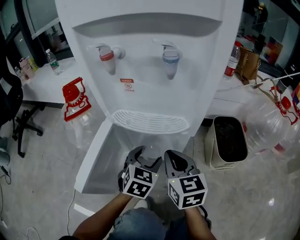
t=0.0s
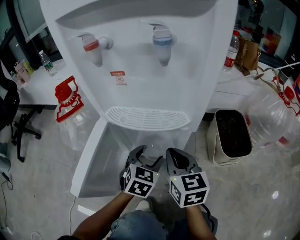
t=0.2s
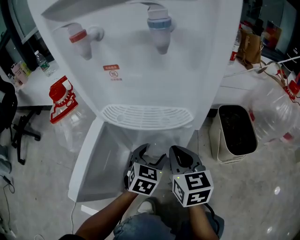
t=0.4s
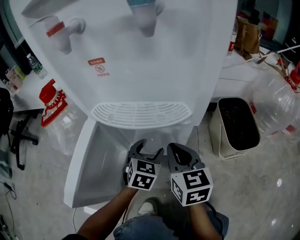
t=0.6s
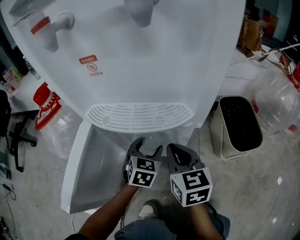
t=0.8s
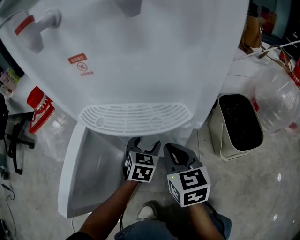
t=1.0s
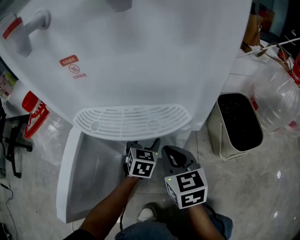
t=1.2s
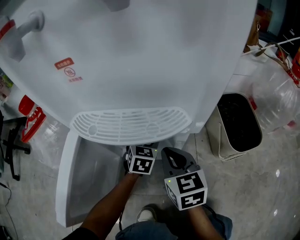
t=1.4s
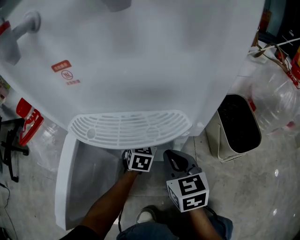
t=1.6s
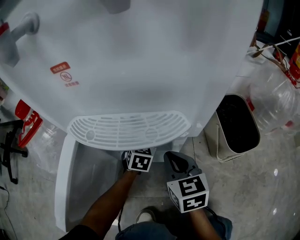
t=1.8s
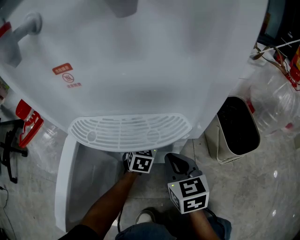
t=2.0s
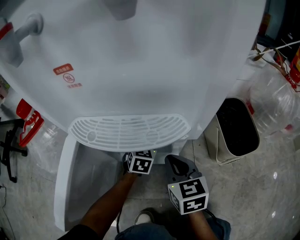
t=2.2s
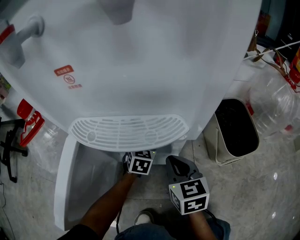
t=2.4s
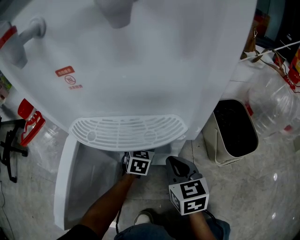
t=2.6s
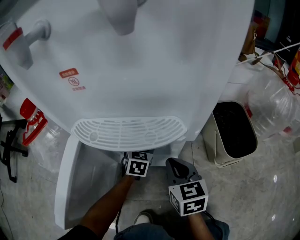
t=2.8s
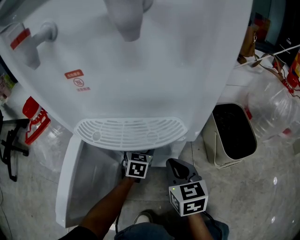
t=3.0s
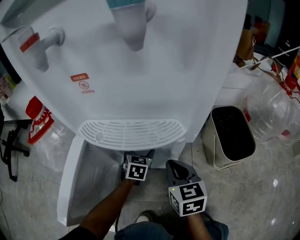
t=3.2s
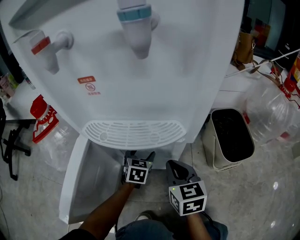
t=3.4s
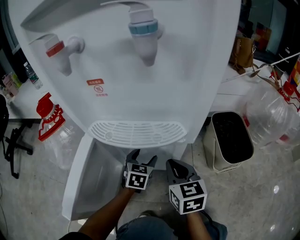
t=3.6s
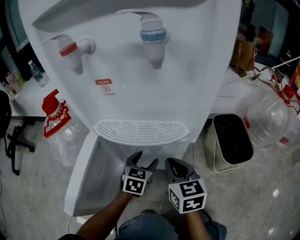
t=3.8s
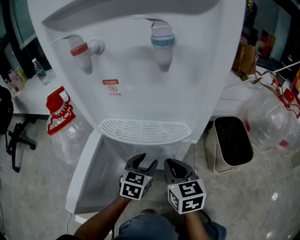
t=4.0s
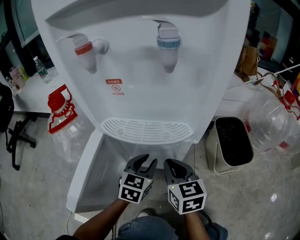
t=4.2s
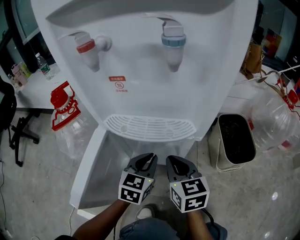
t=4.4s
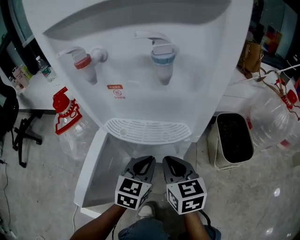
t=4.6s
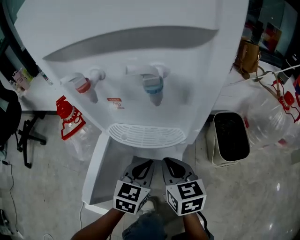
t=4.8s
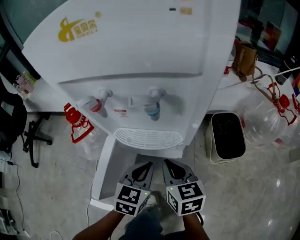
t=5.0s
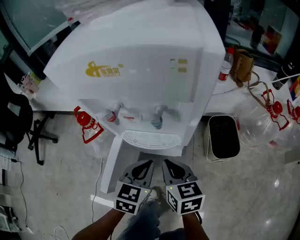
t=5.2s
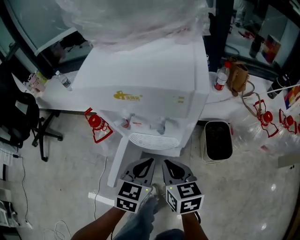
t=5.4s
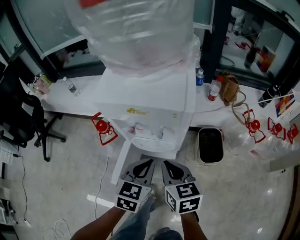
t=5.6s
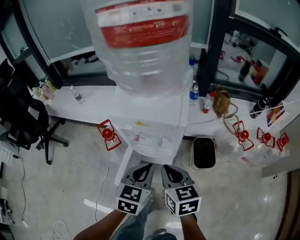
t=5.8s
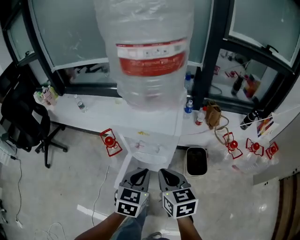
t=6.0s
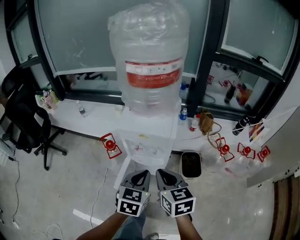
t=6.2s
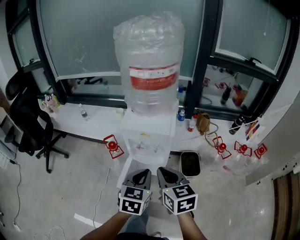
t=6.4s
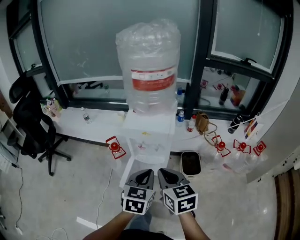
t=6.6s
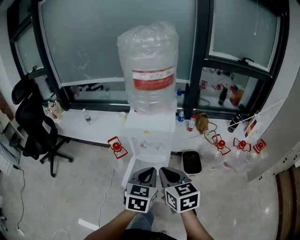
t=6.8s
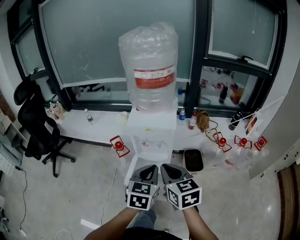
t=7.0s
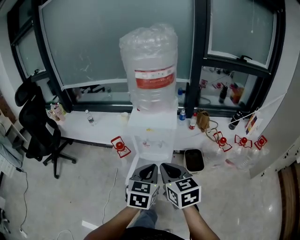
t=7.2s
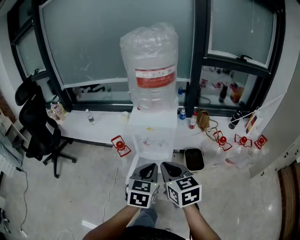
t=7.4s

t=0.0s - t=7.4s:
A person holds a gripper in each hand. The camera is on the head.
t=0.0s - t=1.4s: The left gripper moves downward and forward, roughly 20 cm, while the right gripper is displaced downward and forward by some 10 cm.
t=1.4s - t=3.0s: The grippers make only small movements.
t=3.0s - t=4.4s: The left gripper is displaced upward and backward by roughly 20 cm, and closes its fingers. The right gripper heads upward, covering about 5 cm.
t=4.4s - t=6.0s: The grippers both shift upward by roughly 50 cm.
t=6.0s - t=7.4s: The grippers both shift upward and backward by approximately 20 cm.

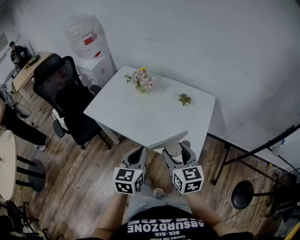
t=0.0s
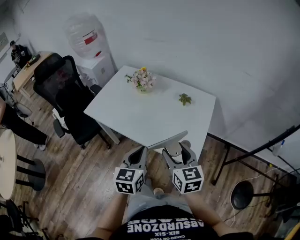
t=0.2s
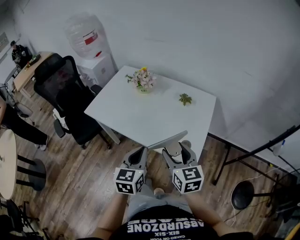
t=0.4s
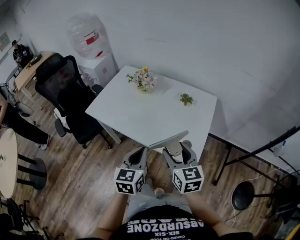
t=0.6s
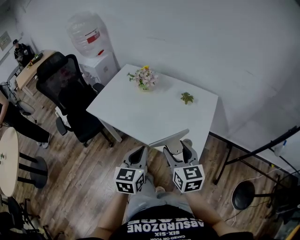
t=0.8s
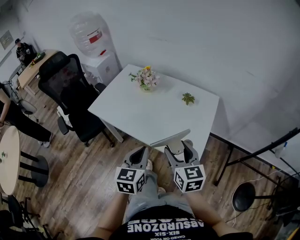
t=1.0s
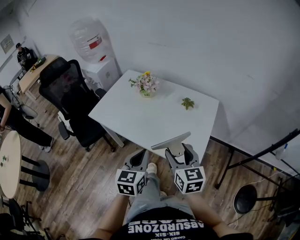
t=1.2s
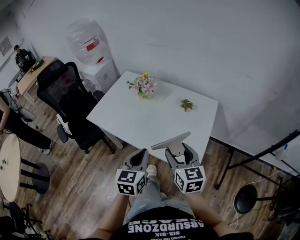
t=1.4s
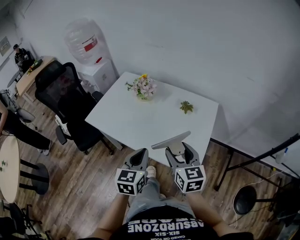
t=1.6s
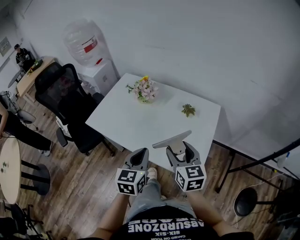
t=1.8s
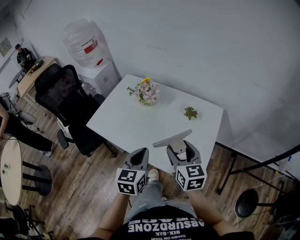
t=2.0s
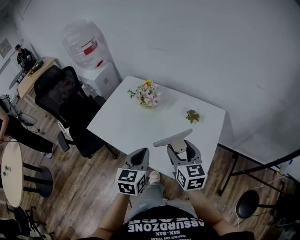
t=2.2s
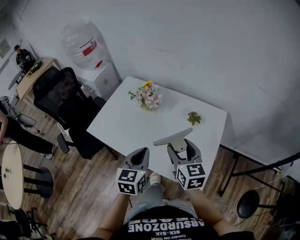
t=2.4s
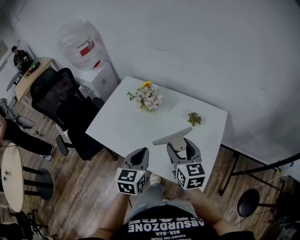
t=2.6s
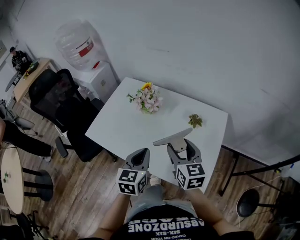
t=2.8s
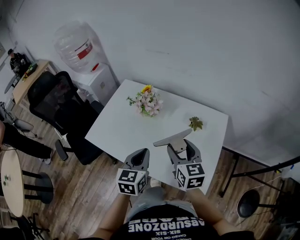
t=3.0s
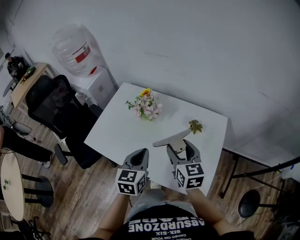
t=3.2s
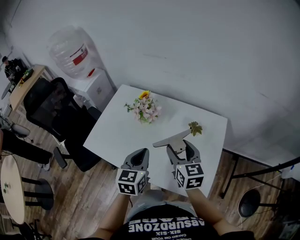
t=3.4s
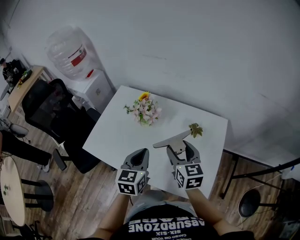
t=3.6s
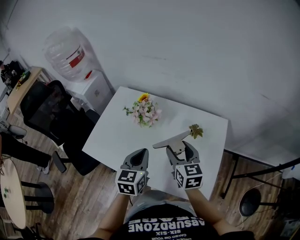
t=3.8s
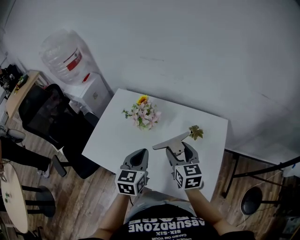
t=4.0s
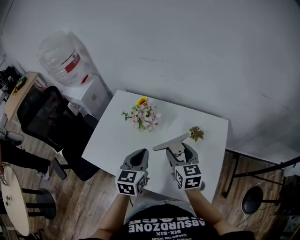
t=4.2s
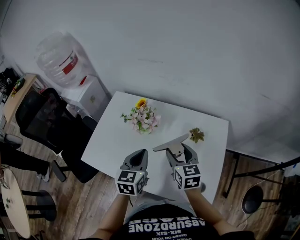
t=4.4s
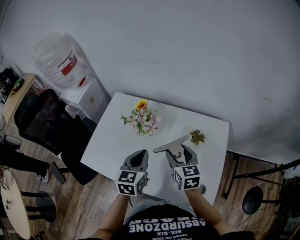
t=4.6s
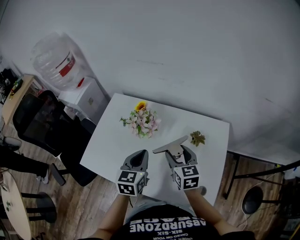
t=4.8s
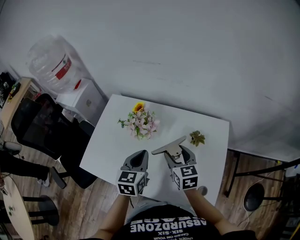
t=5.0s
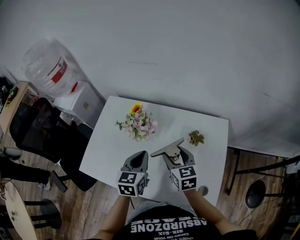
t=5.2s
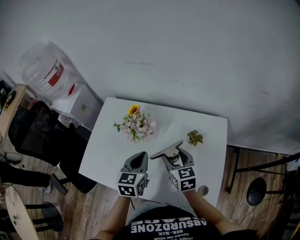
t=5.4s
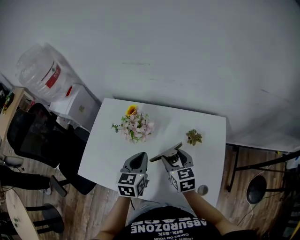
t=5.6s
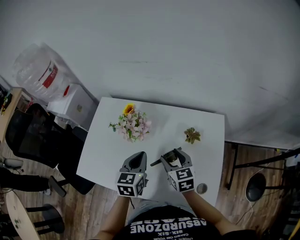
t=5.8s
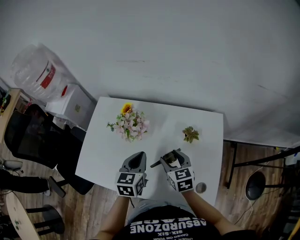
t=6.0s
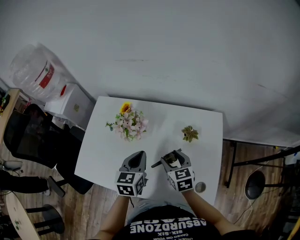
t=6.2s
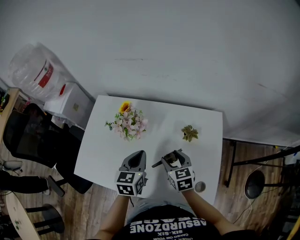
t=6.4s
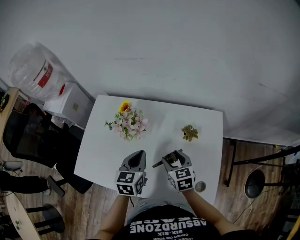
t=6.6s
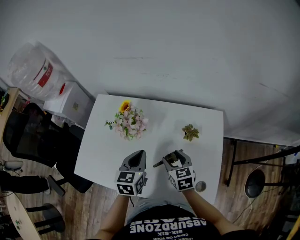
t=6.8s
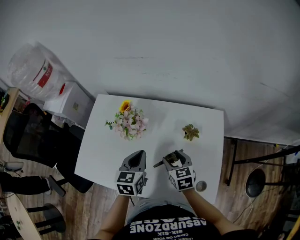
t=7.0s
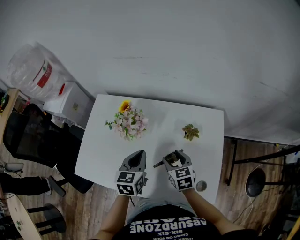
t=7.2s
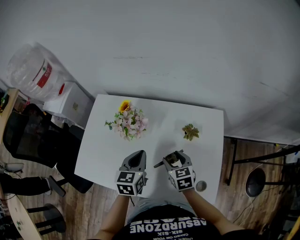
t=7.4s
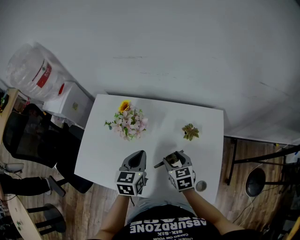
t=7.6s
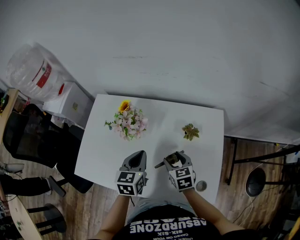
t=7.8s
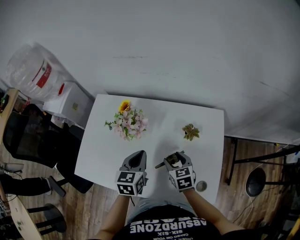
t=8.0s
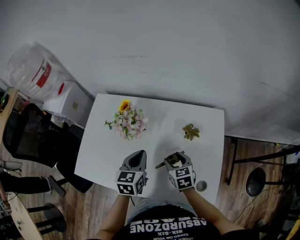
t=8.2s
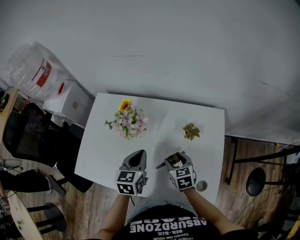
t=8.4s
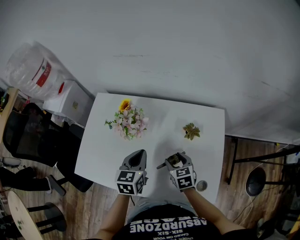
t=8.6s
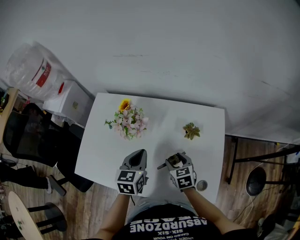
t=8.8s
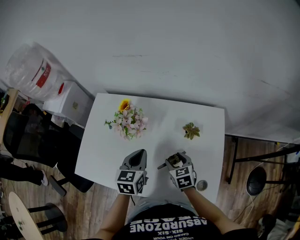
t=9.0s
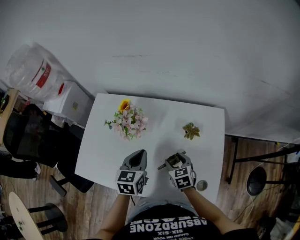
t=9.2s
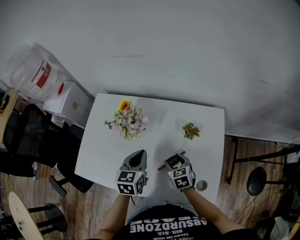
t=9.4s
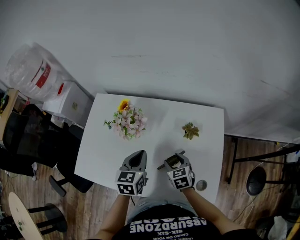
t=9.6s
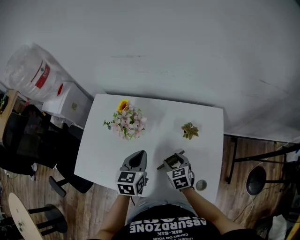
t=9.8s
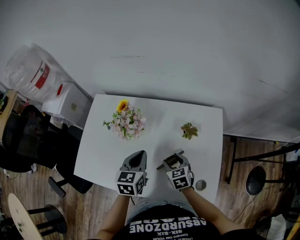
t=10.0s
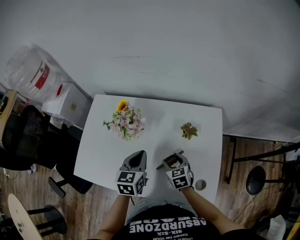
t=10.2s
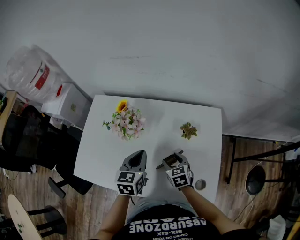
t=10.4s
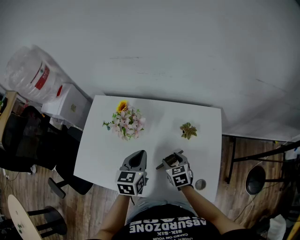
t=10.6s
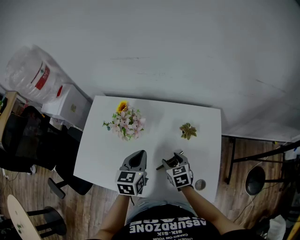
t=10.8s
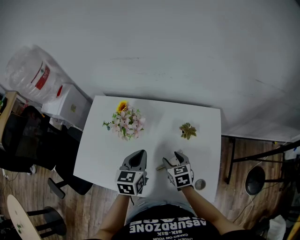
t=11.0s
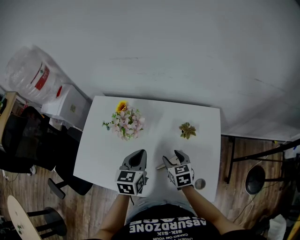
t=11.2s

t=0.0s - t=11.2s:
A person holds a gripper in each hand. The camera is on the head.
t=0.0s - t=1.6s: Both grippers move forward, roughly 5 cm.
t=1.6s - t=3.2s: Both grippers travel together forward, roughly 20 cm.
t=3.2s - t=4.8s: The right gripper shifts approximately 10 cm forward and downward. The left gripper heads forward, covering some 10 cm.
t=4.8s - t=6.4s: The left gripper ends up about 5 cm from where it was, while the right gripper heads downward, covering approximately 5 cm.
t=6.4s - t=8.0s: The grippers make only small movements.
t=8.0s - t=11.2s: There are only small adjustments of the grippers.

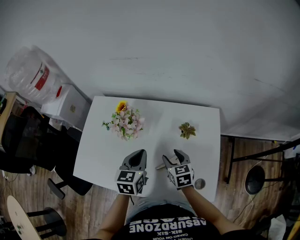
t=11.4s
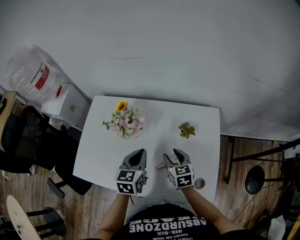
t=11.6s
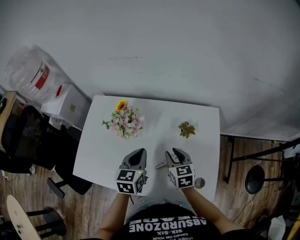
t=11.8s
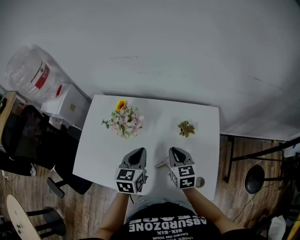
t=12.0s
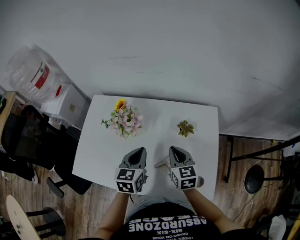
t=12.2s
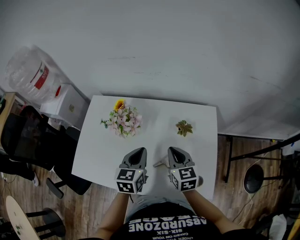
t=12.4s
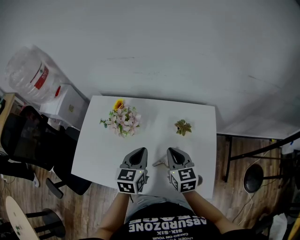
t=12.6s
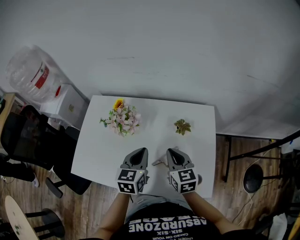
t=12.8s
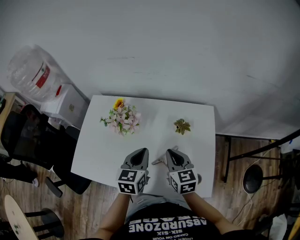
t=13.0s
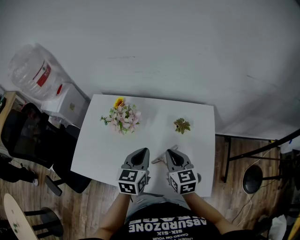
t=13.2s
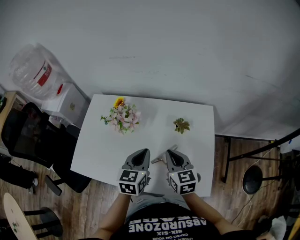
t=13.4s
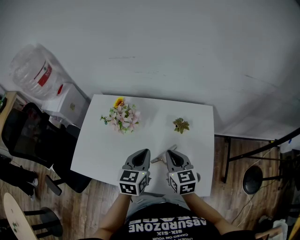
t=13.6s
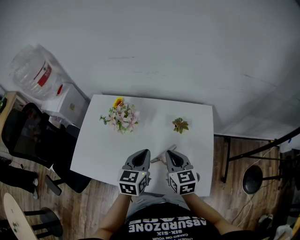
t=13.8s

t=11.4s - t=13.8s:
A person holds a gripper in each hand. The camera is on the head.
t=11.4s - t=12.6s: The right gripper is displaced upward by roughly 10 cm, and closes.
t=12.6s - t=13.8s: The grippers stay close to where they were, moving slightly.

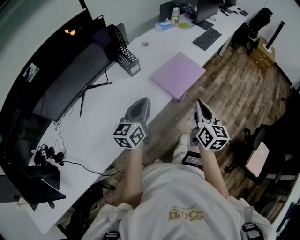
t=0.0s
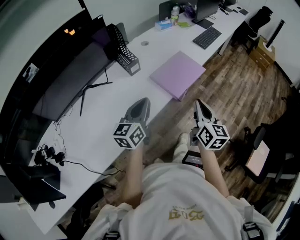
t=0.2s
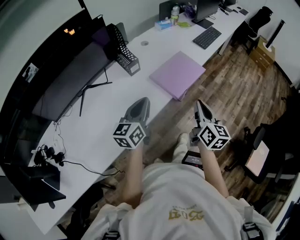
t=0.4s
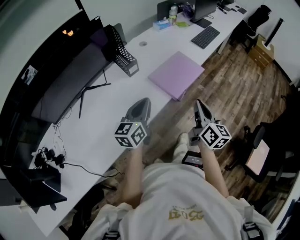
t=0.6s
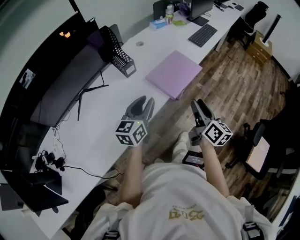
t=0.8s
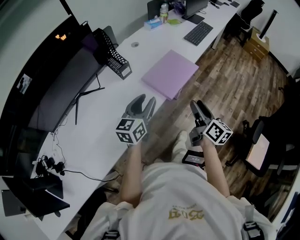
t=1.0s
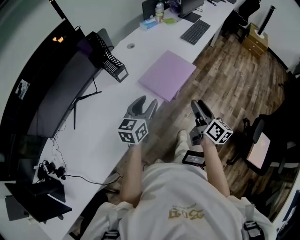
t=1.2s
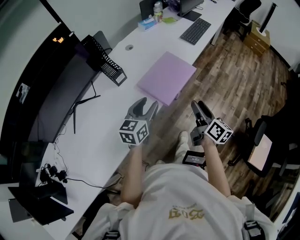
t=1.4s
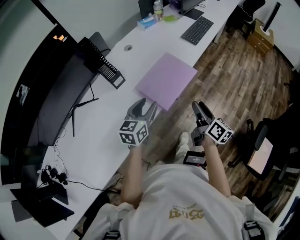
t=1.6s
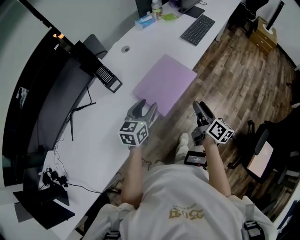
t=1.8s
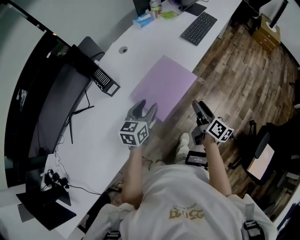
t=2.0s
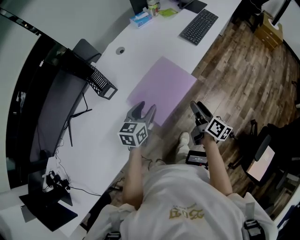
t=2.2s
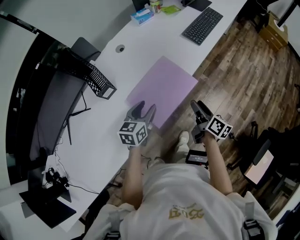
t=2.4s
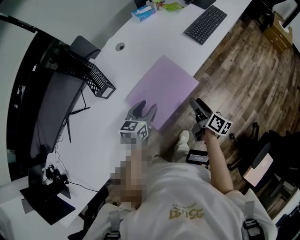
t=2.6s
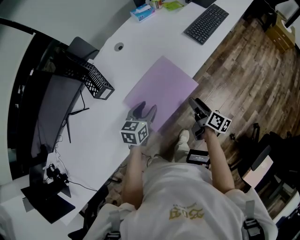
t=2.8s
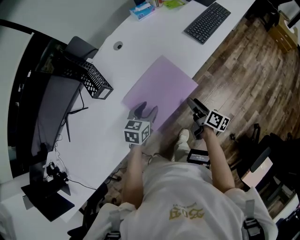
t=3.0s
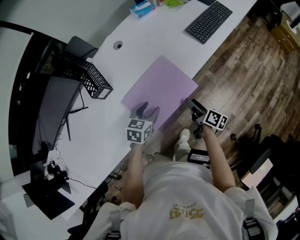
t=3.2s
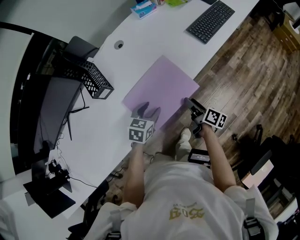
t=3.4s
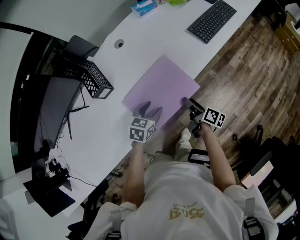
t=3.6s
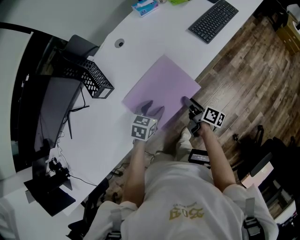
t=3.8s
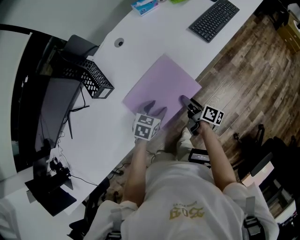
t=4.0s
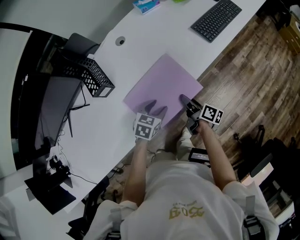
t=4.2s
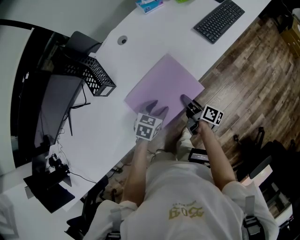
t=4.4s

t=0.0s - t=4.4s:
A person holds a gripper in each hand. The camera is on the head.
t=0.0s - t=1.4s: Both grippers travel together forward, to the right and downward, approximately 15 cm. The left gripper opens its fingers. Meanwhile the right gripper turns by some 30 degrees, and opens.
t=1.4s - t=3.0s: The left gripper heads forward, downward and to the right, covering roughly 25 cm, and swivels about 30 degrees. Meanwhile the right gripper heads forward and downward, covering some 30 cm, and turns by approximately 30 degrees.
t=3.0s - t=4.4s: The right gripper ends up some 10 cm from where it was. Meanwhile the left gripper is displaced downward by approximately 5 cm.
